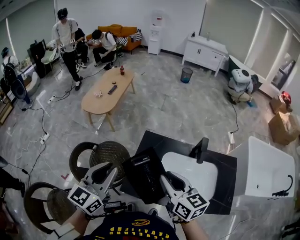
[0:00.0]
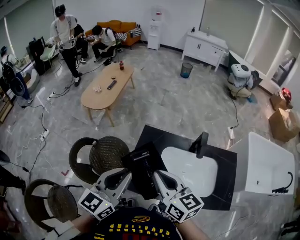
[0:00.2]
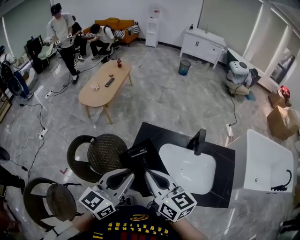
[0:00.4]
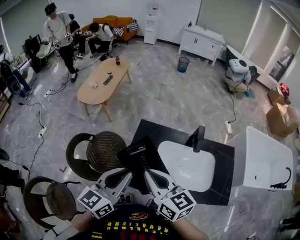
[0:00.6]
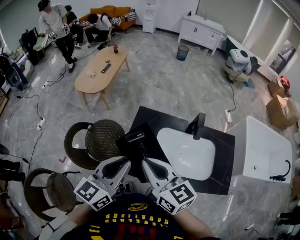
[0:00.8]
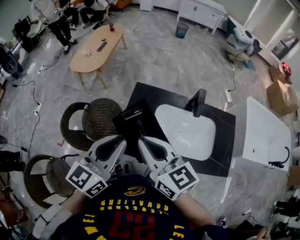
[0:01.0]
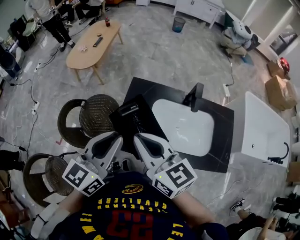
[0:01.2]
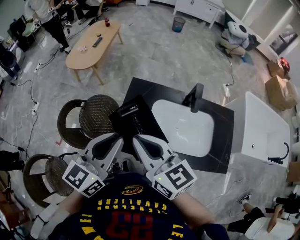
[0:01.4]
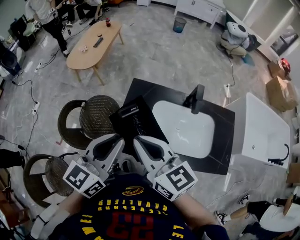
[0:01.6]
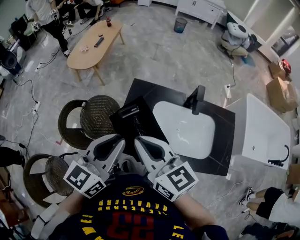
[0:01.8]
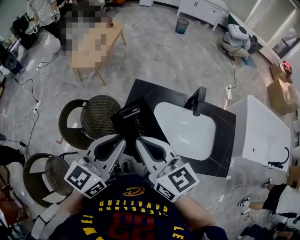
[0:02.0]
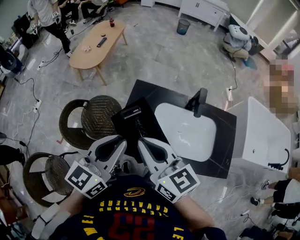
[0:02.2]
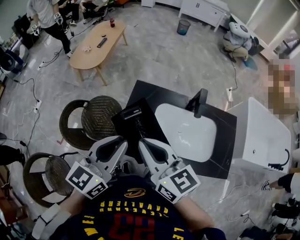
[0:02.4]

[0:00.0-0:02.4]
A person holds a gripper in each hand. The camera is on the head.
0:00.0 to 0:01.2: The left gripper moves to the right, approximately 10 cm; the right gripper travels to the left by some 5 cm, and closes up.
0:01.2 to 0:02.4: Both grippers stay put.

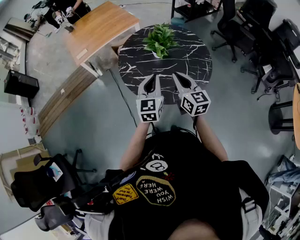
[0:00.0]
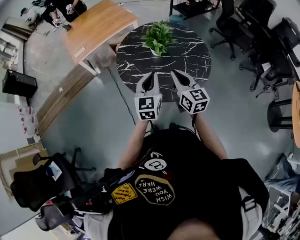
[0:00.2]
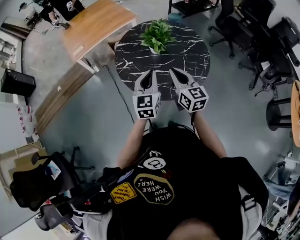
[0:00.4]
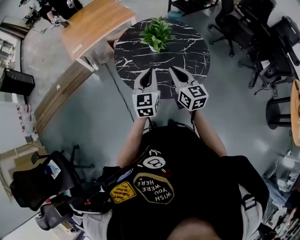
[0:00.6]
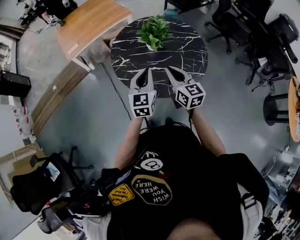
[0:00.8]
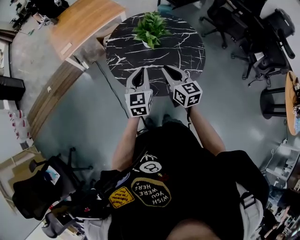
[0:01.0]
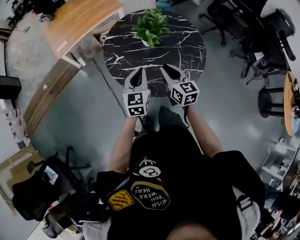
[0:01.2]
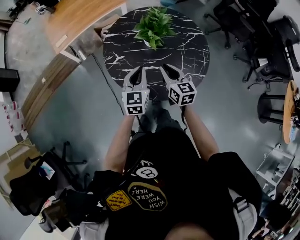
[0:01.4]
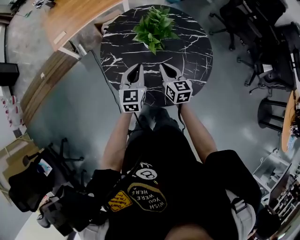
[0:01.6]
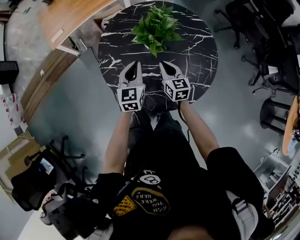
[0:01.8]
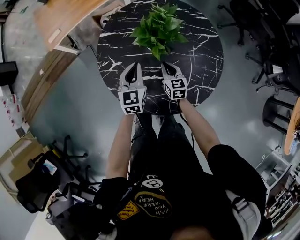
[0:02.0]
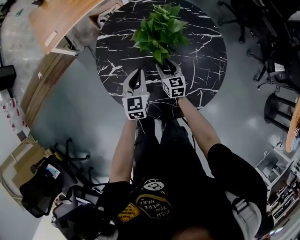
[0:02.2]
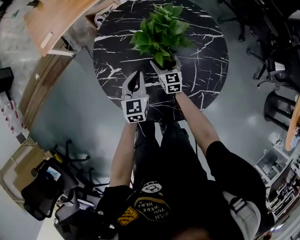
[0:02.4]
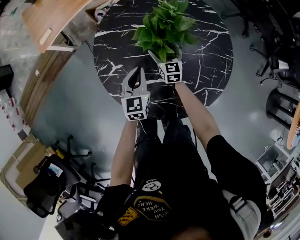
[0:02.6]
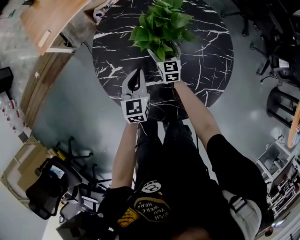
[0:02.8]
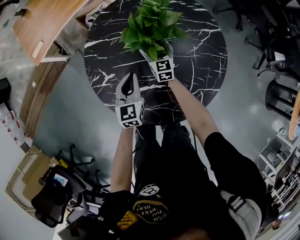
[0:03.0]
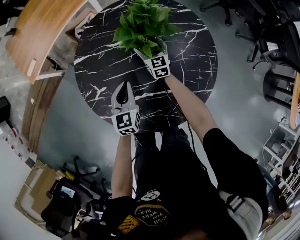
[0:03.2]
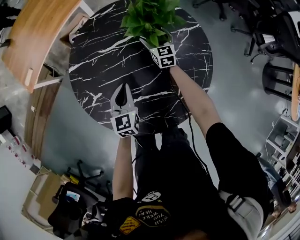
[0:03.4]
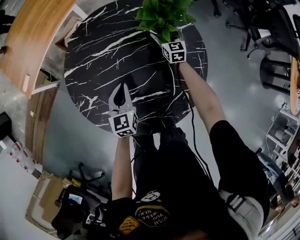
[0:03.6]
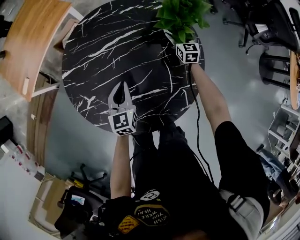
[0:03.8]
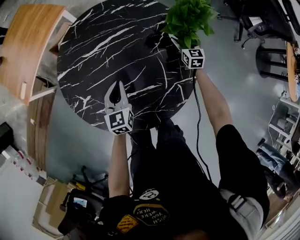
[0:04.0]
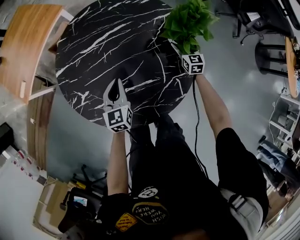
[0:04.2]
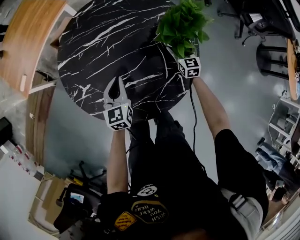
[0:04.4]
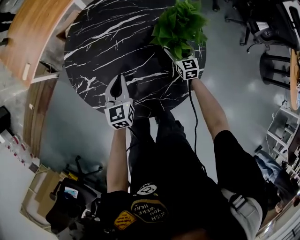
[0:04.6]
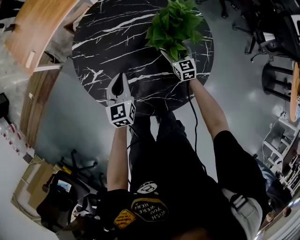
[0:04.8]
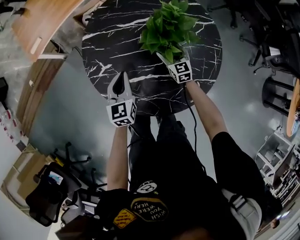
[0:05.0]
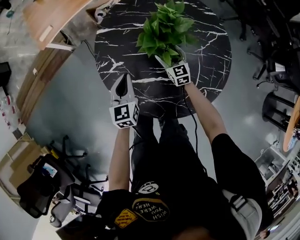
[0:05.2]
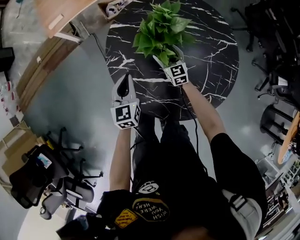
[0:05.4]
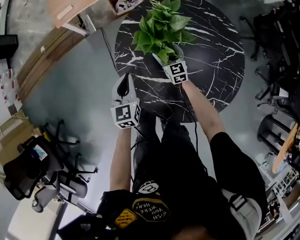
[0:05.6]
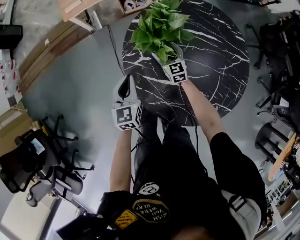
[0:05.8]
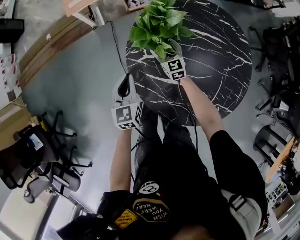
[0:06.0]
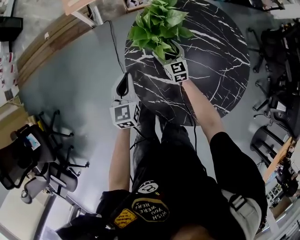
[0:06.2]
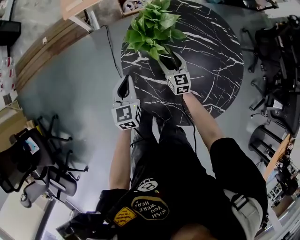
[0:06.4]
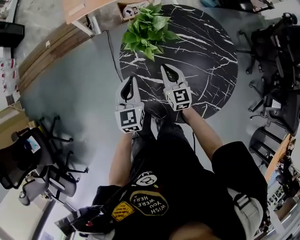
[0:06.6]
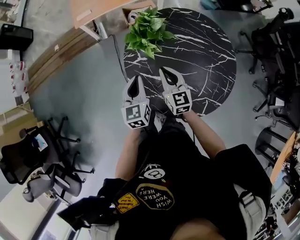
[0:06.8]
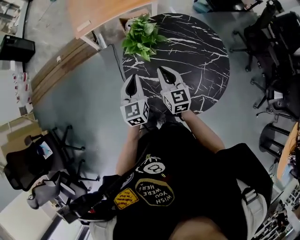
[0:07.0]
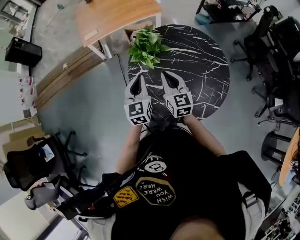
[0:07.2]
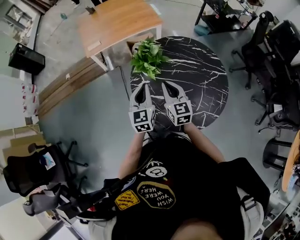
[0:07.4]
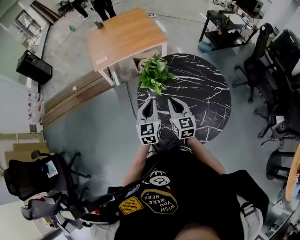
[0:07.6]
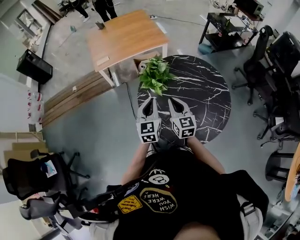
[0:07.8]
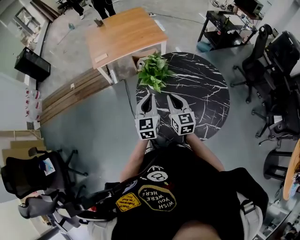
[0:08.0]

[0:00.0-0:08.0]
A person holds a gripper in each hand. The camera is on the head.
0:00.0 to 0:01.6: The left gripper goes some 20 cm forward and downward. The right gripper travels downward and forward by about 25 cm.
0:01.6 to 0:03.2: The right gripper heads forward and downward, covering approximately 35 cm, and opens up. The left gripper travels downward and forward by some 20 cm.
0:03.2 to 0:04.8: The right gripper is displaced to the right and backward by some 15 cm. The left gripper travels backward by about 5 cm, and goes to the right and returns, about 5 cm each way.
0:04.8 to 0:06.4: The right gripper moves some 30 cm, and rotates some 20 degrees; the left gripper moves some 20 cm, and rotates some 30 degrees.
0:06.4 to 0:08.0: The left gripper shifts some 20 cm upward, while the right gripper moves upward and backward, some 35 cm, and closes its fingers.

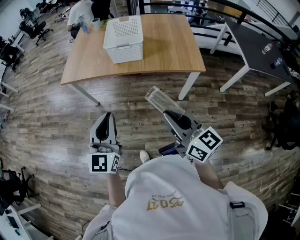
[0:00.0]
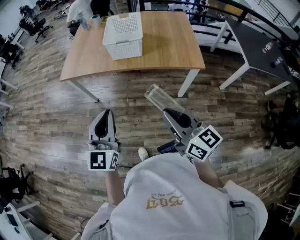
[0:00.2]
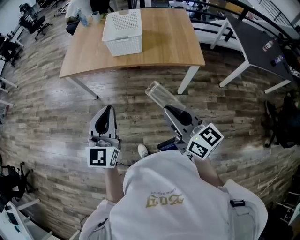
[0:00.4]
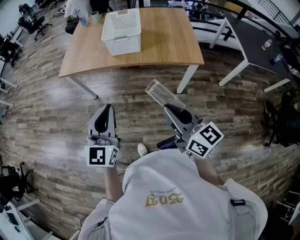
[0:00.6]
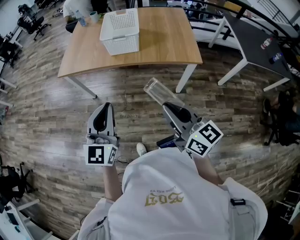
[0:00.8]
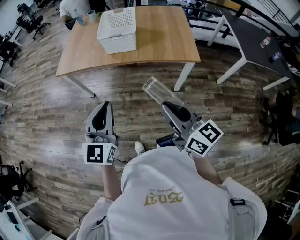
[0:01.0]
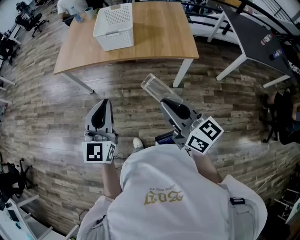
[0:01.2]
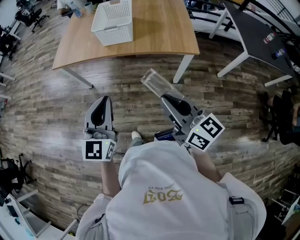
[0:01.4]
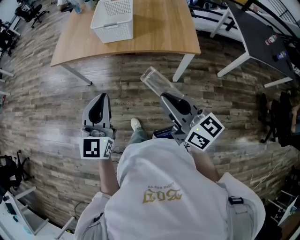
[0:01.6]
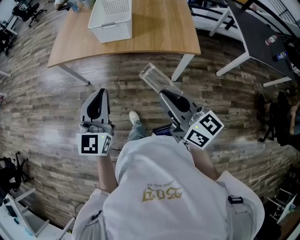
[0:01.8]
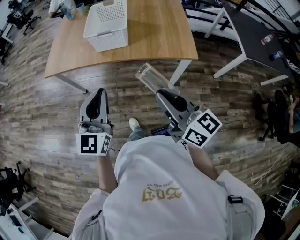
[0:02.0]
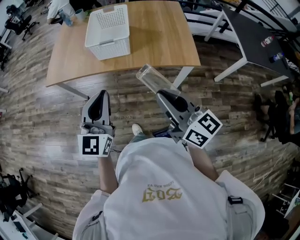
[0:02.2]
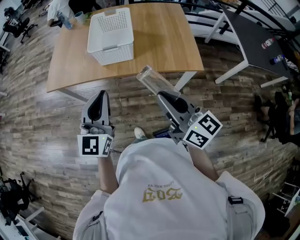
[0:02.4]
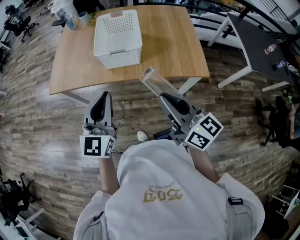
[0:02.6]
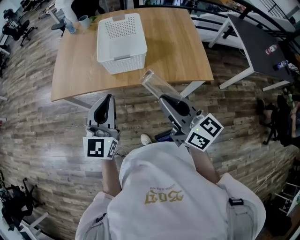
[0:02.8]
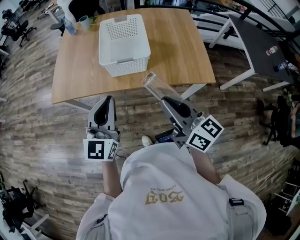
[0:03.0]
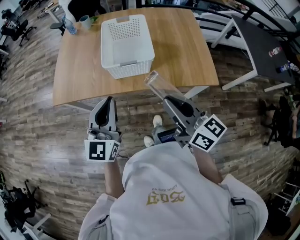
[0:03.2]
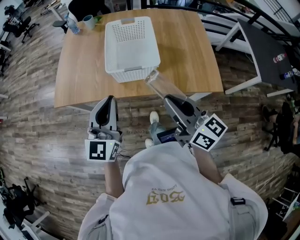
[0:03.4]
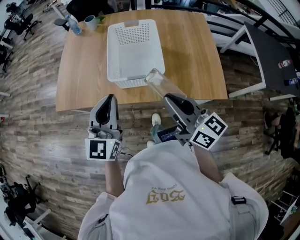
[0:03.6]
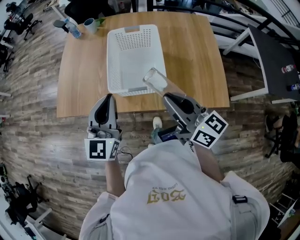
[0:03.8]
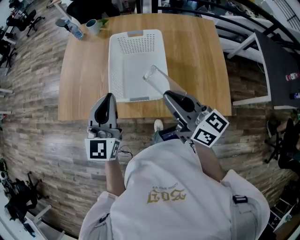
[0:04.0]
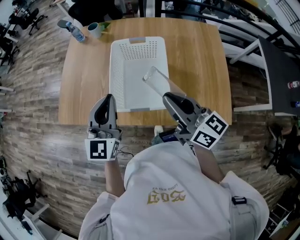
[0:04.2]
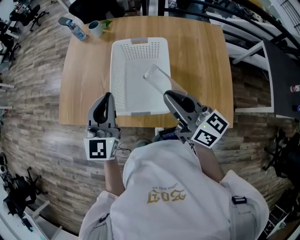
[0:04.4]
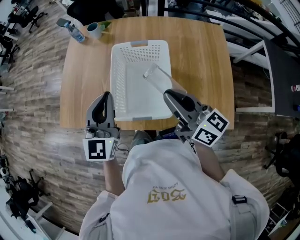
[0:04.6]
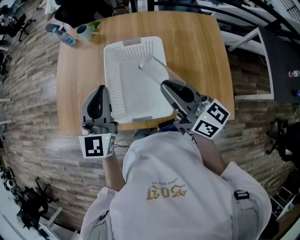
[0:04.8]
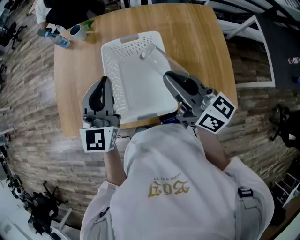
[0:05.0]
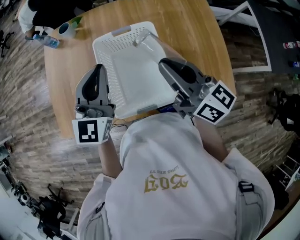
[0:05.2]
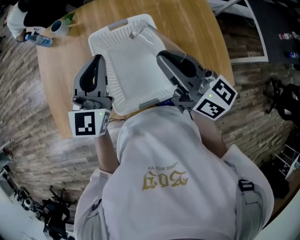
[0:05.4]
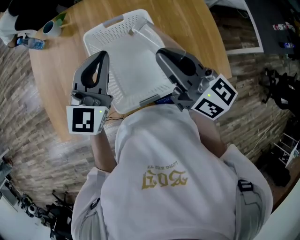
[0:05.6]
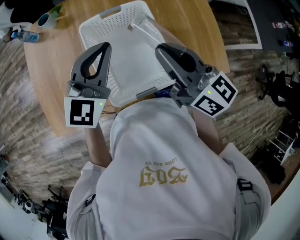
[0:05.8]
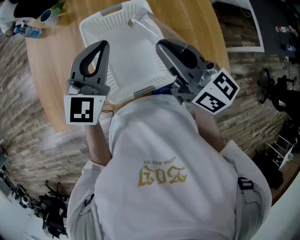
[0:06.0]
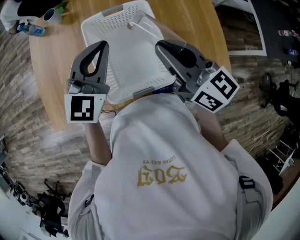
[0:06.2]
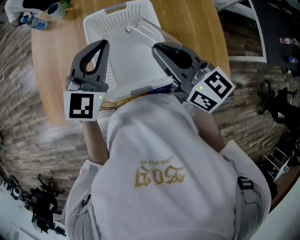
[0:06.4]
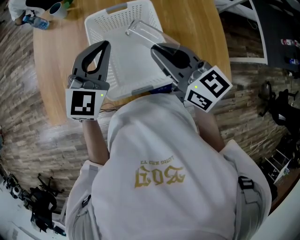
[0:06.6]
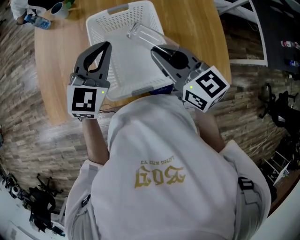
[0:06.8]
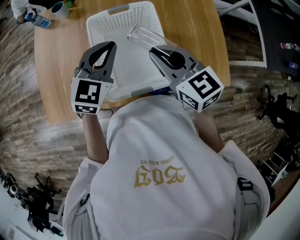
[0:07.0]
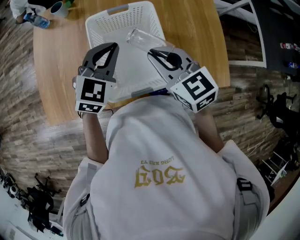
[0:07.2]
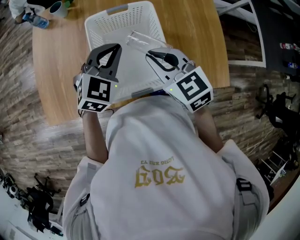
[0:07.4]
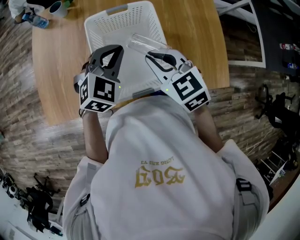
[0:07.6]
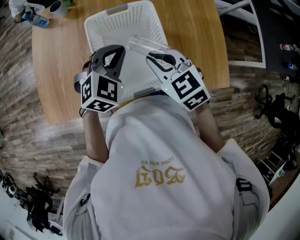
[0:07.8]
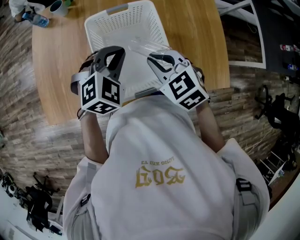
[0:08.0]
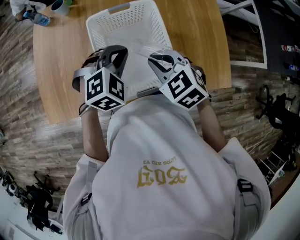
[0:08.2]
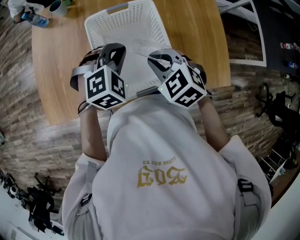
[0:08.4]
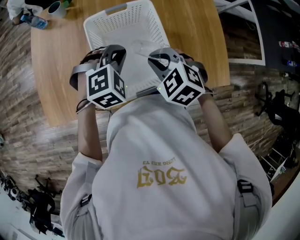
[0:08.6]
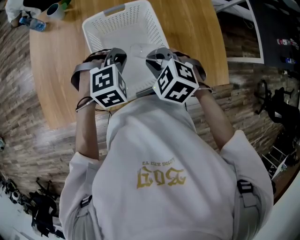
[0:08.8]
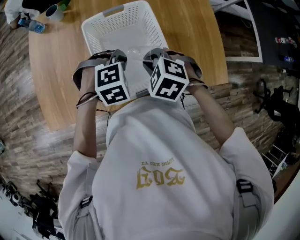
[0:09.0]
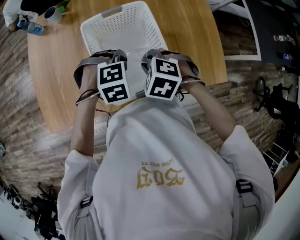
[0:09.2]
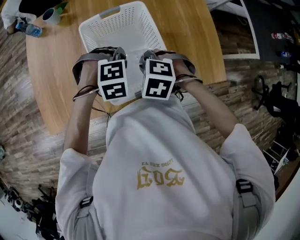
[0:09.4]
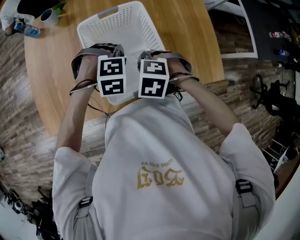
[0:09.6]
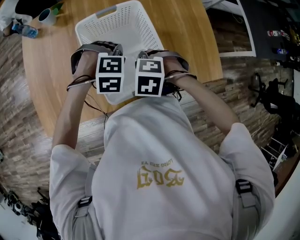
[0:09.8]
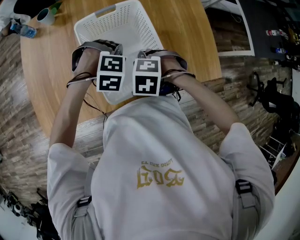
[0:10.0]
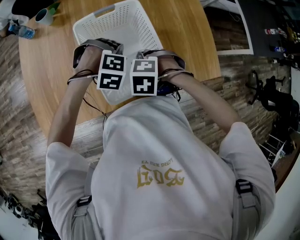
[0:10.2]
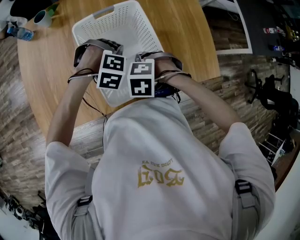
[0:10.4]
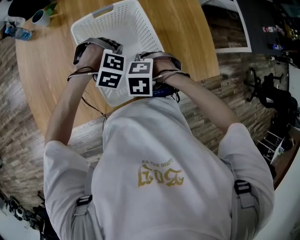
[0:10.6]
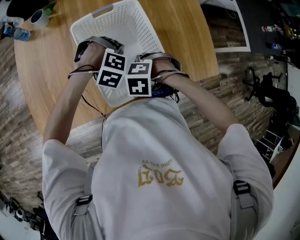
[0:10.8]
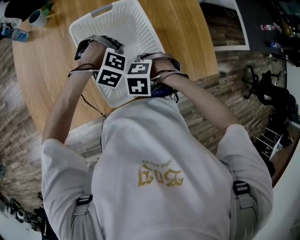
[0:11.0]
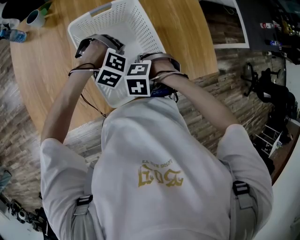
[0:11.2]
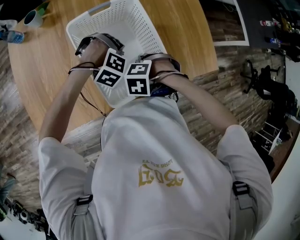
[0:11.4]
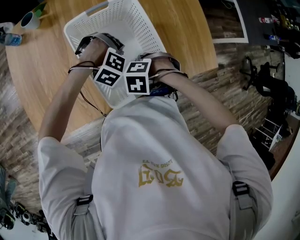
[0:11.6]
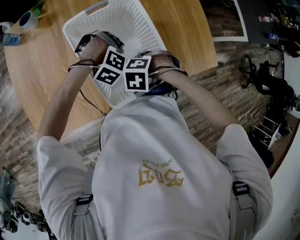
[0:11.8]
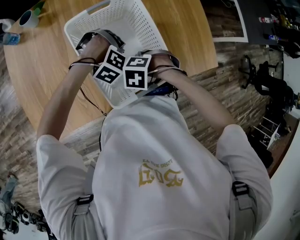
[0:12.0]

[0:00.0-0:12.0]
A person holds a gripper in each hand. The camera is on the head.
0:00.0 to 0:01.6: The two grippers go roughly 5 cm to the right.
0:01.6 to 0:03.0: Both grippers travel together forward, about 25 cm.
0:03.0 to 0:04.4: Both grippers move forward, roughly 25 cm.
0:04.4 to 0:06.0: The right gripper shifts by about 5 cm. The left gripper moves approximately 10 cm, and turns by approximately 30 degrees.
0:06.0 to 0:07.6: Both grippers travel together downward, approximately 10 cm. The left gripper swivels roughly 30 degrees, while the right gripper points its fingers about 30 degrees further downward.
0:07.6 to 0:09.0: The two grippers go about 5 cm downward. The left gripper angles its fingers downward, by about 30 degrees; the right gripper points its fingers approximately 30 degrees further downward.
0:09.0 to 0:10.4: The grippers both shift downward by some 5 cm. The right gripper changes its angle by about 20 degrees. The left gripper swivels approximately 30 degrees.
0:10.4 to 0:12.0: The left gripper shifts about 5 cm downward, and swivels some 20 degrees.

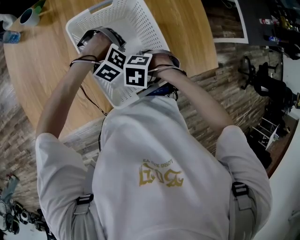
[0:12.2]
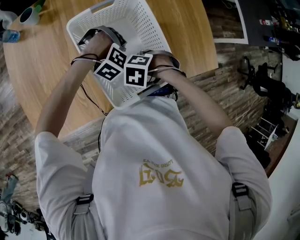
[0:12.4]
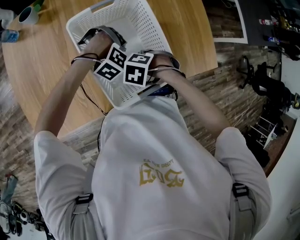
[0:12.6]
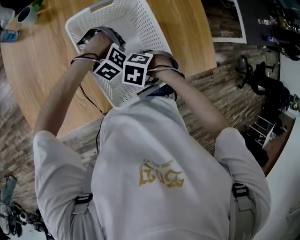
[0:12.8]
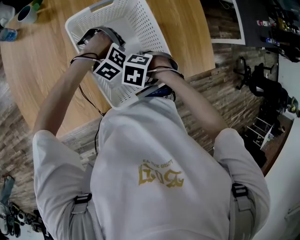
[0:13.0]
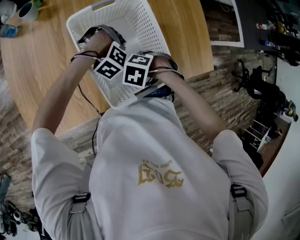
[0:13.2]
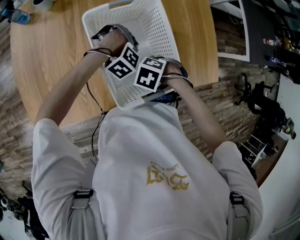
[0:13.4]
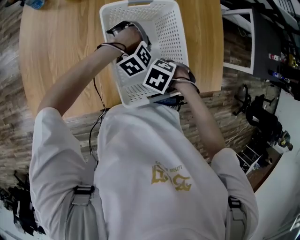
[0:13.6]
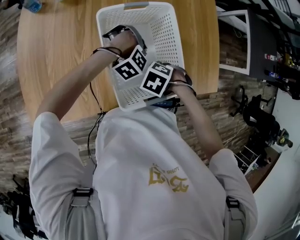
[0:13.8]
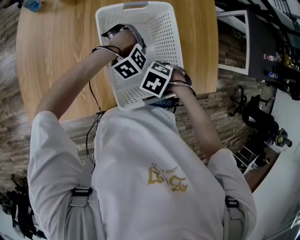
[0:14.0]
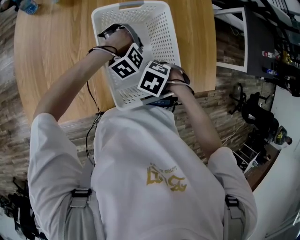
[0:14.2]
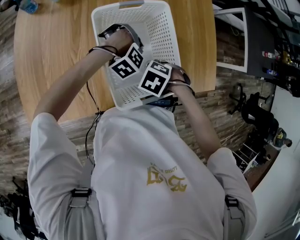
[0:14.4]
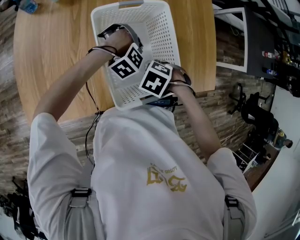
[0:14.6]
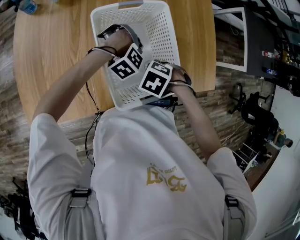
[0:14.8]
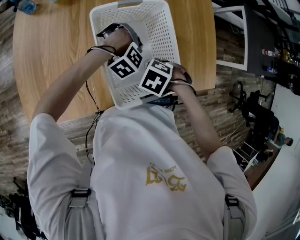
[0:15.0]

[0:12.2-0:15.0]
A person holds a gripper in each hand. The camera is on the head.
0:12.2 to 0:15.0: There are only small adjustments of the grippers.
